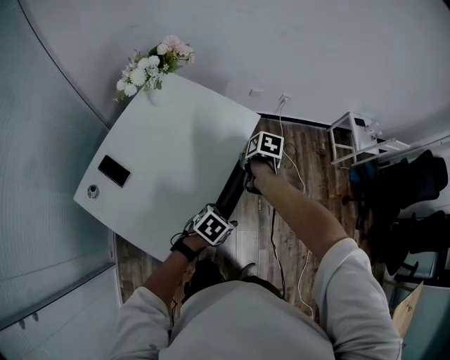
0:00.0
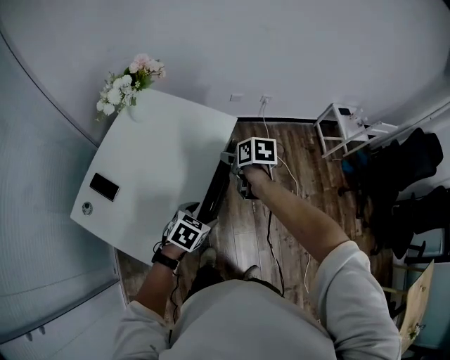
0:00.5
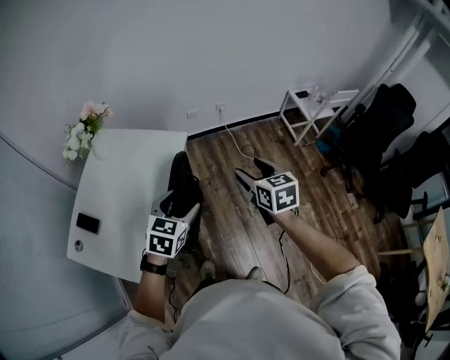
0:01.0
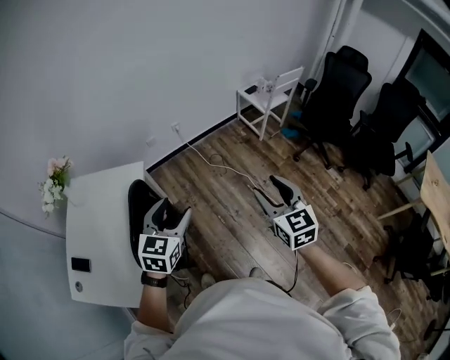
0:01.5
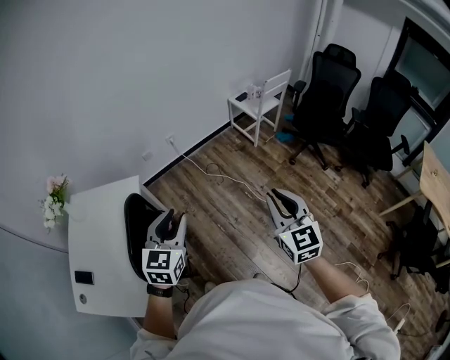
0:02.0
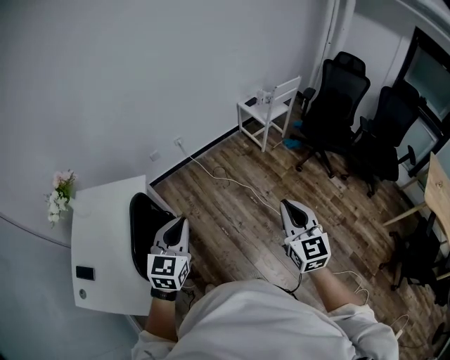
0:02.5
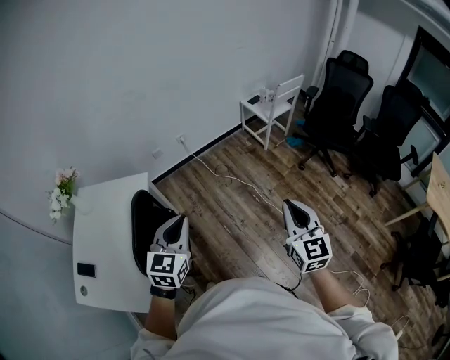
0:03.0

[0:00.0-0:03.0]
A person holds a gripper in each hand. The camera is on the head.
0:00.0 to 0:01.5: The right gripper heads to the right, upward and backward, covering about 60 cm, and tilts its fingers roughly 50 degrees upward. Meanwhile the left gripper is displaced upward and to the right by about 35 cm, and angles its fingers upward, by about 30 degrees.
0:01.5 to 0:03.0: The right gripper travels to the right by some 10 cm, and closes up. The left gripper ends up about 5 cm from where it was, and closes up.

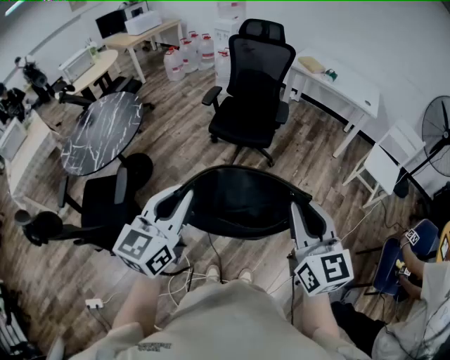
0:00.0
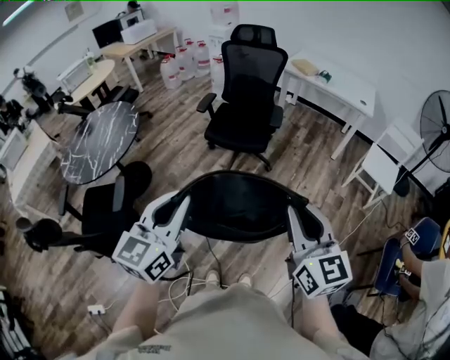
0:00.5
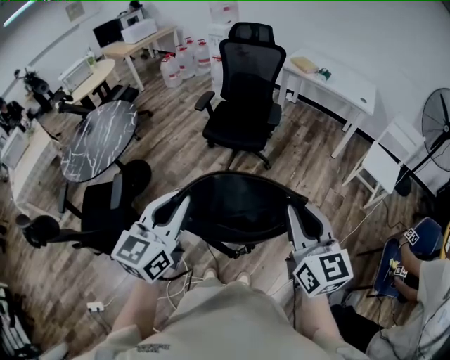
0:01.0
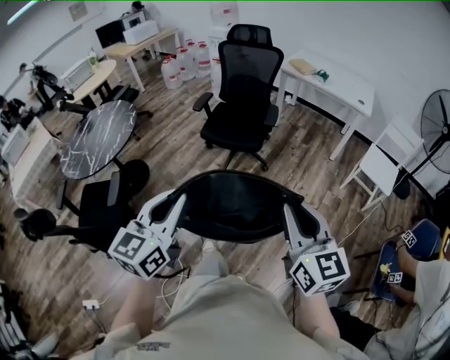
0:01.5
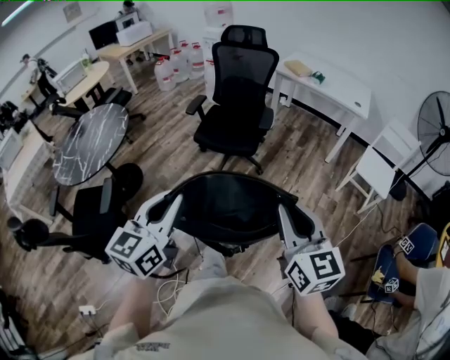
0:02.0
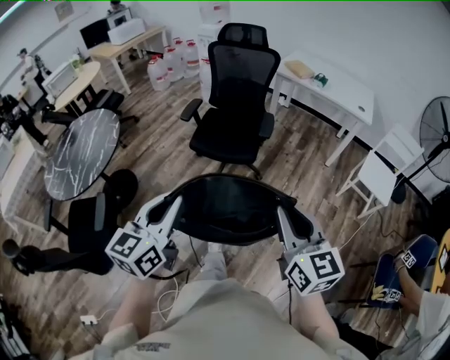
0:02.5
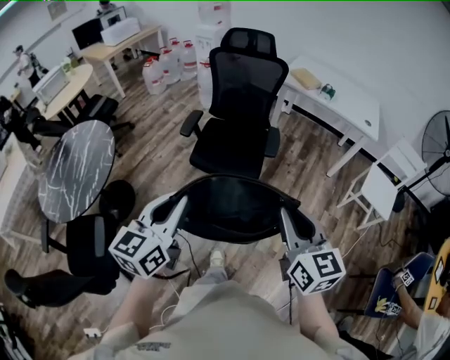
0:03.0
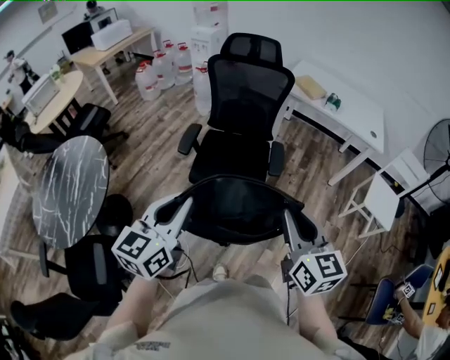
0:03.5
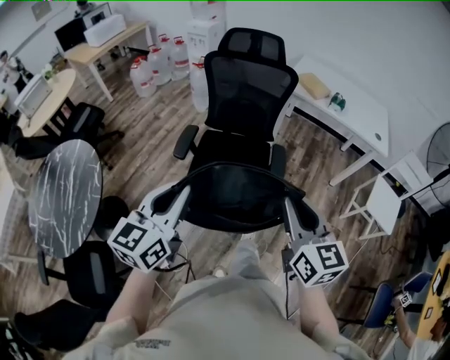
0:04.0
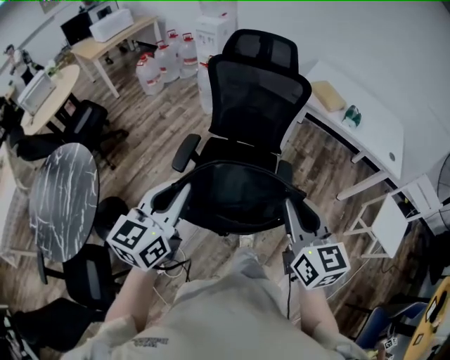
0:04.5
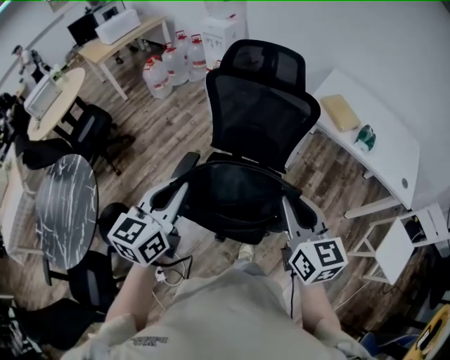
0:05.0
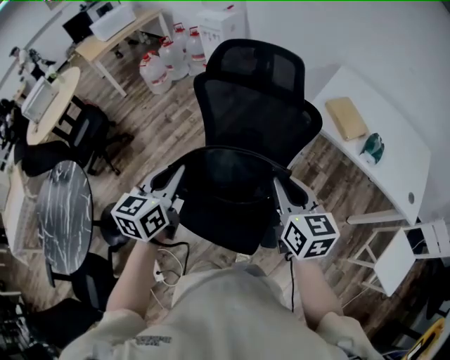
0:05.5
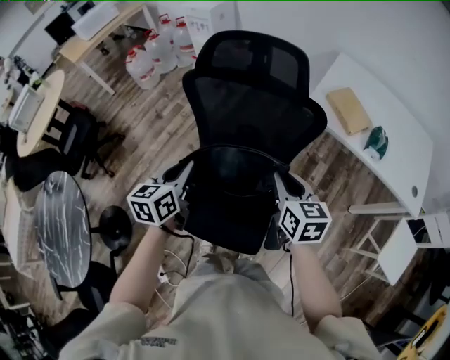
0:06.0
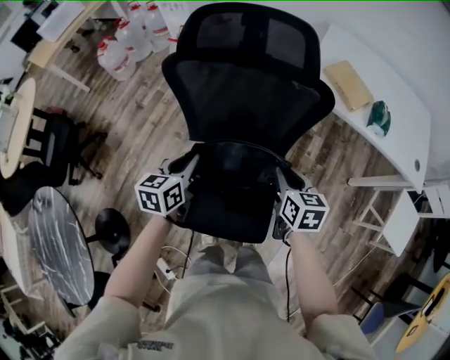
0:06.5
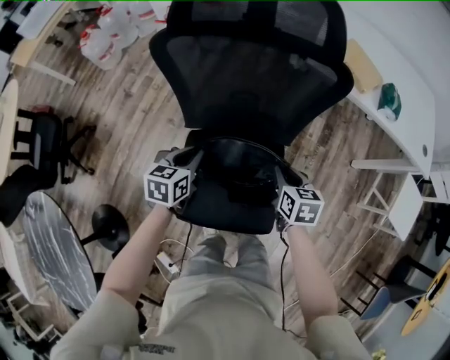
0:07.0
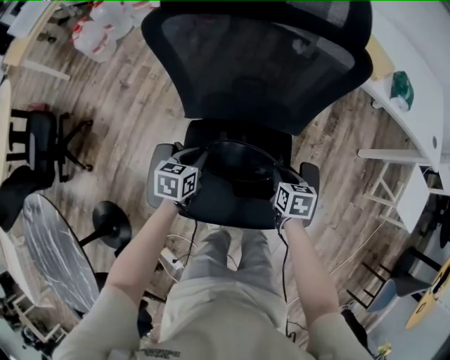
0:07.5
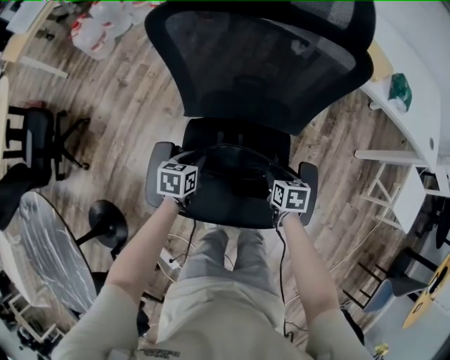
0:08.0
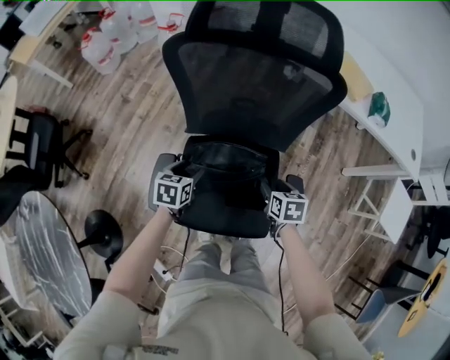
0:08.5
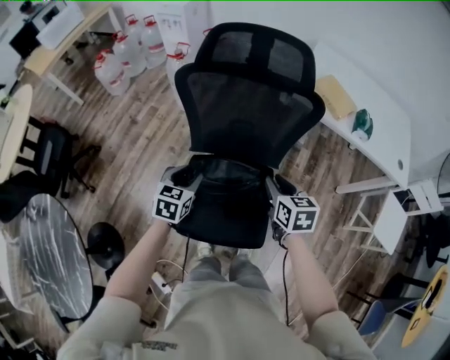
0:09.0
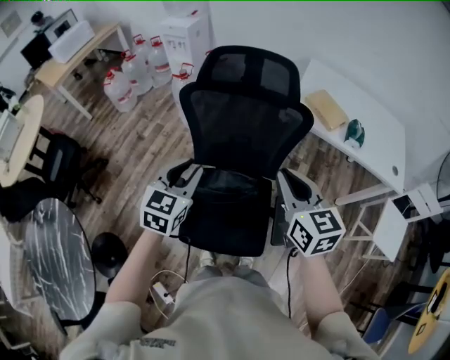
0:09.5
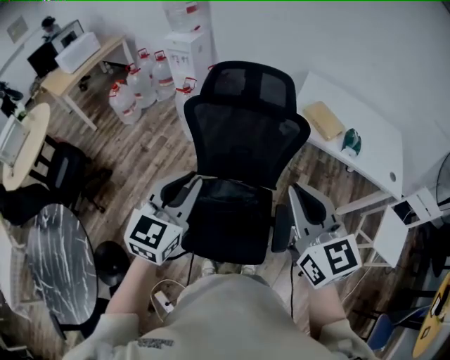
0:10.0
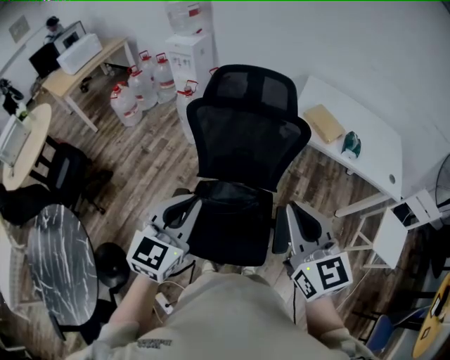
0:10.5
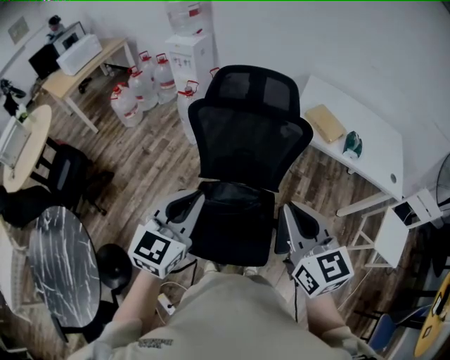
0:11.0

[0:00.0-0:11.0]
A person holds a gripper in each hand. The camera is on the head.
0:00.0 to 0:02.0: The grippers both shift to the right by roughly 10 cm.
0:02.0 to 0:03.5: Both grippers are carried forward, about 50 cm.
0:03.5 to 0:05.5: The pair of grippers is taken forward, about 60 cm.
0:05.5 to 0:07.5: The two grippers go roughly 40 cm downward. The left gripper changes its angle by roughly 40 degrees, while the right gripper angles its fingers downward, by about 40 degrees.
0:07.5 to 0:09.0: The grippers both shift upward by approximately 25 cm. The left gripper opens, while the right gripper turns by roughly 20 degrees, and opens and closes again.
0:09.0 to 0:11.0: The two grippers go some 30 cm upward and backward. The left gripper changes its angle by some 30 degrees, and closes. The right gripper swivels about 30 degrees, and closes up.

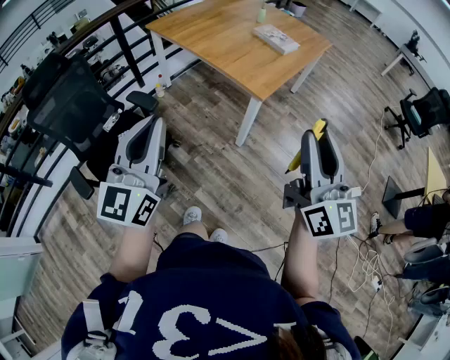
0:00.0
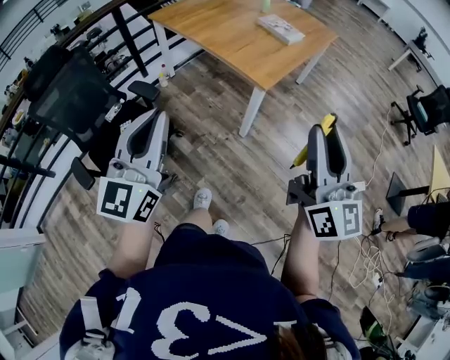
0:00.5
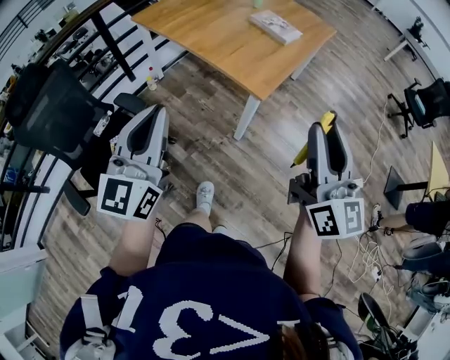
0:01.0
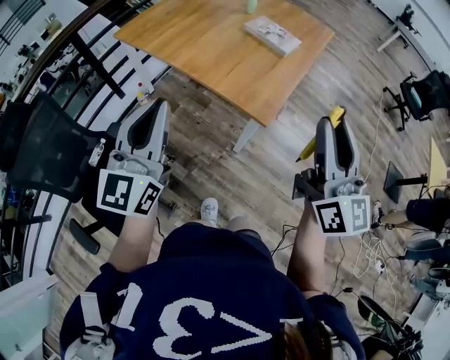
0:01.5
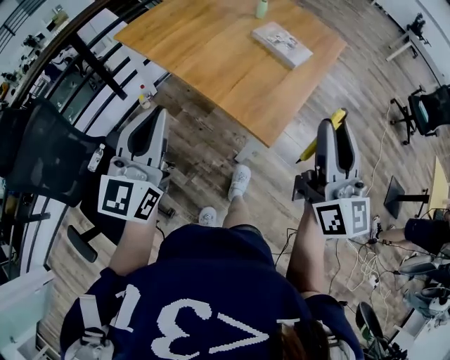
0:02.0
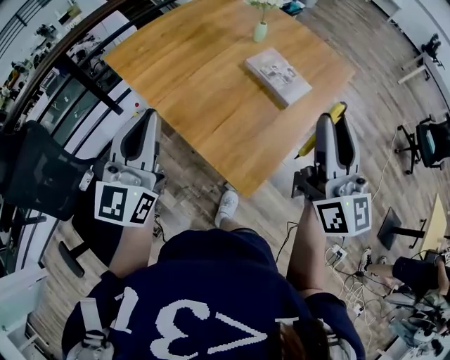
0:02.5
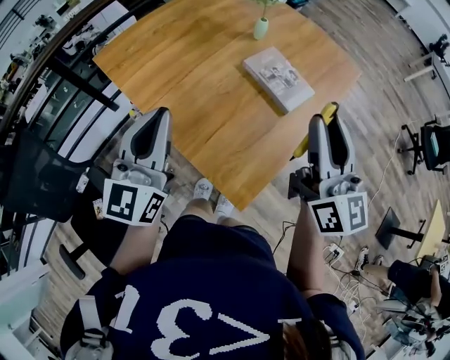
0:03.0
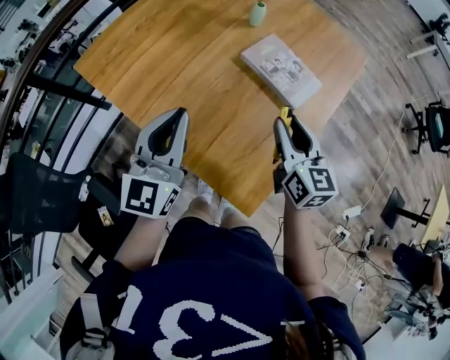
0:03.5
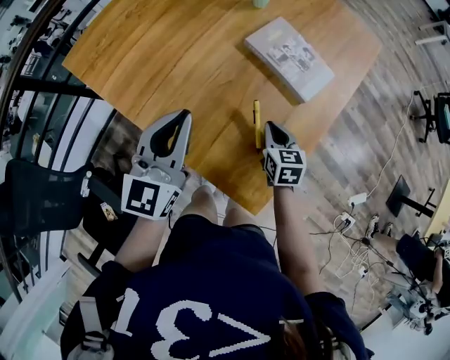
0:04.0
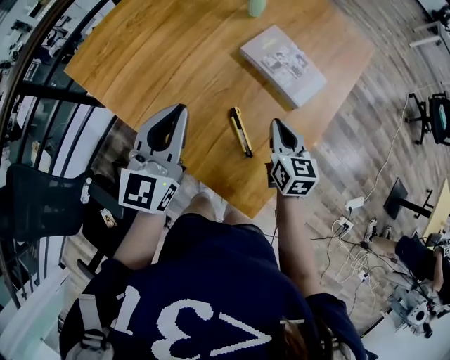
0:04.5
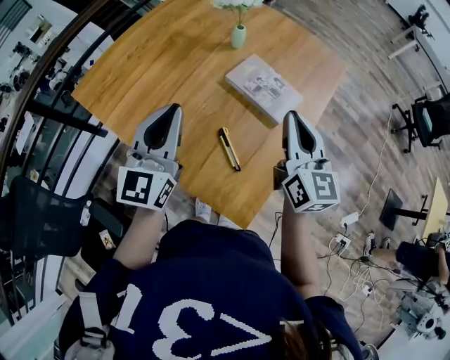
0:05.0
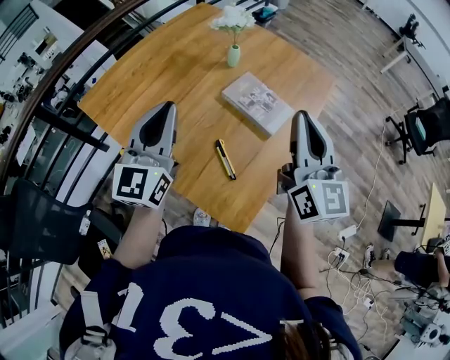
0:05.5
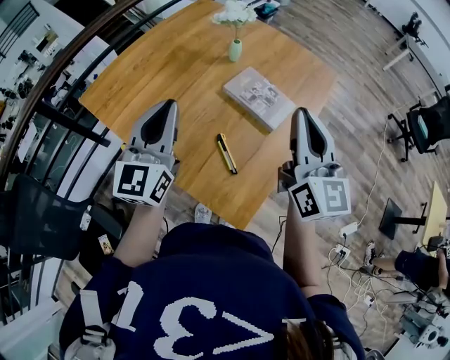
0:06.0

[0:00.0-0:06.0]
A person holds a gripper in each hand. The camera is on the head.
0:00.0 to 0:02.0: Both grippers travel together forward, some 35 cm.
0:02.0 to 0:04.0: The left gripper goes some 35 cm forward. Meanwhile the right gripper moves downward and forward, roughly 50 cm, angles its fingers downward, by about 50 degrees, and closes its fingers.
0:04.0 to 0:06.0: The right gripper goes roughly 40 cm upward, and points its fingers roughly 50 degrees further upward. Meanwhile the left gripper moves upward, some 15 cm.

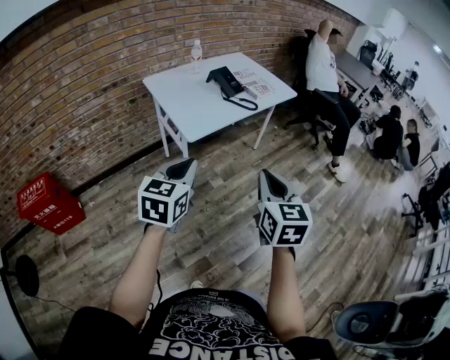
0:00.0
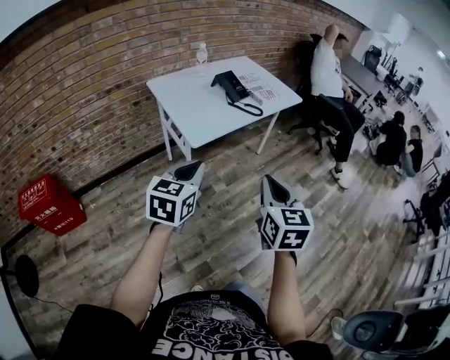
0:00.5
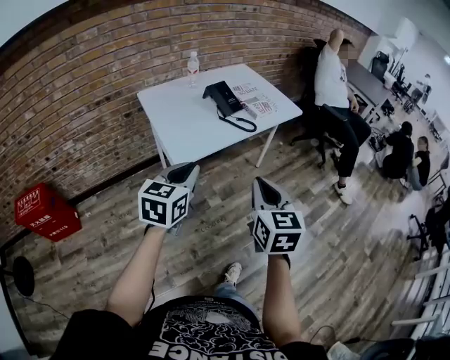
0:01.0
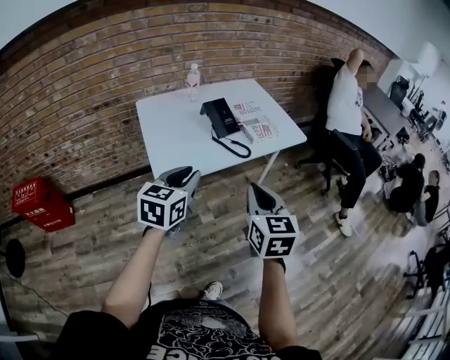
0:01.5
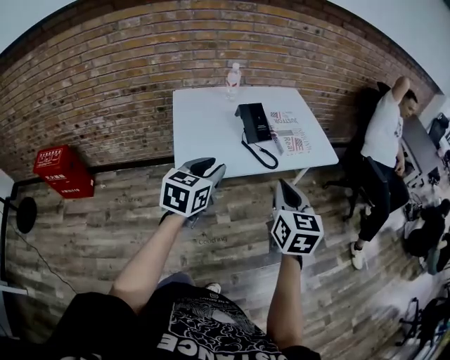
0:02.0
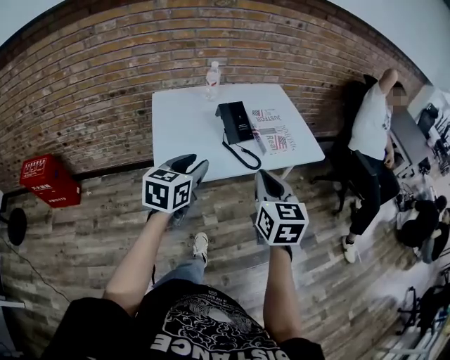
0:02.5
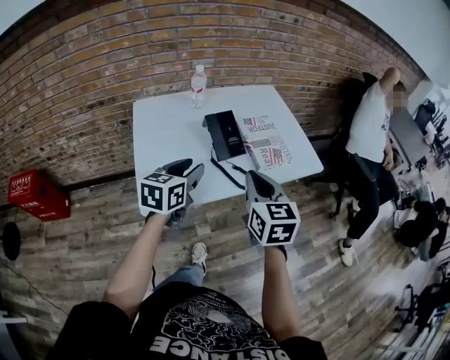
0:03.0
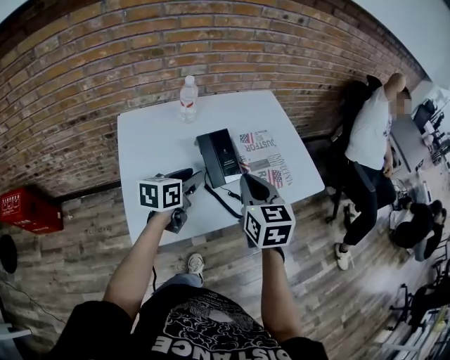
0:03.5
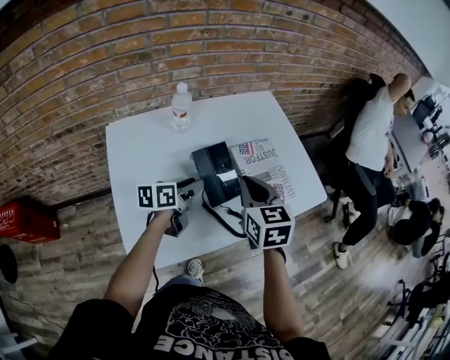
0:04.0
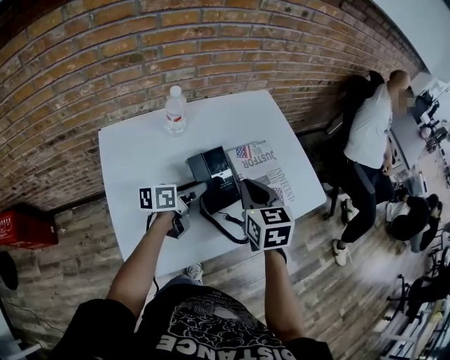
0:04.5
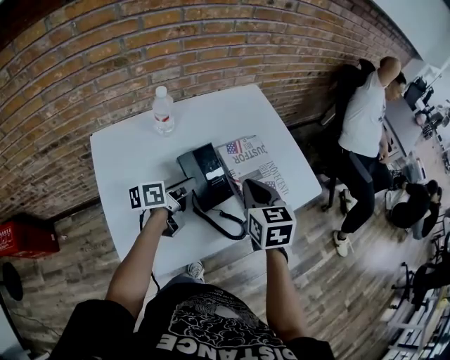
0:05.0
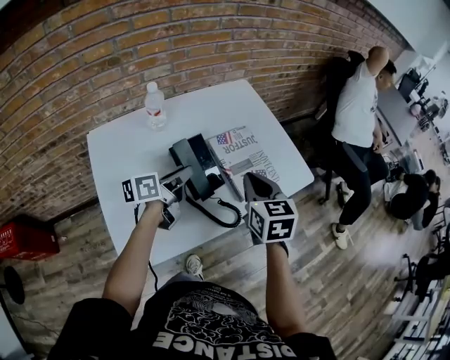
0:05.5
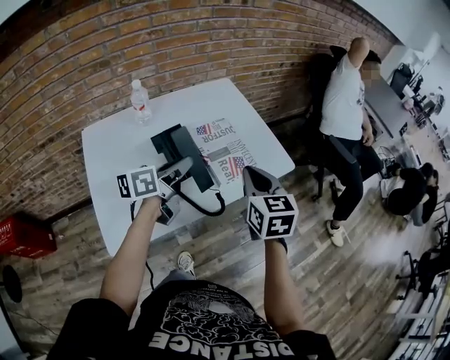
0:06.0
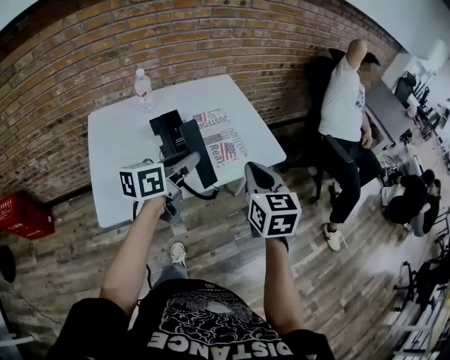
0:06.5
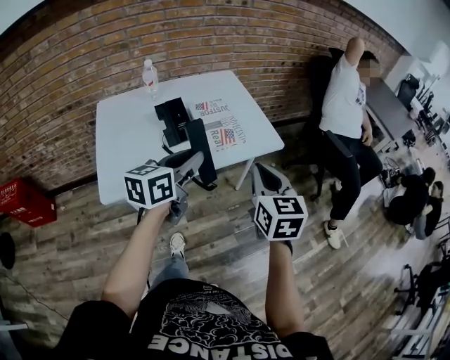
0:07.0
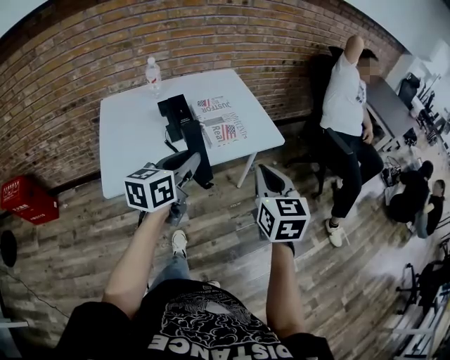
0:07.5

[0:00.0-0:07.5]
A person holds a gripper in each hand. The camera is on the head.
0:00.0 to 0:02.0: The left gripper is displaced forward and to the right by about 30 cm, and opens its fingers, while the right gripper shifts about 30 cm forward.
0:02.0 to 0:04.0: The right gripper heads forward, covering roughly 35 cm. The left gripper is displaced forward and downward by some 40 cm, and rotates about 40 degrees.
0:04.0 to 0:05.5: The left gripper ends up roughly 5 cm from where it was. Meanwhile the right gripper goes approximately 10 cm to the right.
0:05.5 to 0:07.5: The left gripper heads backward, to the right and upward, covering some 30 cm, and rotates some 30 degrees; the right gripper travels backward and to the right by about 30 cm.
